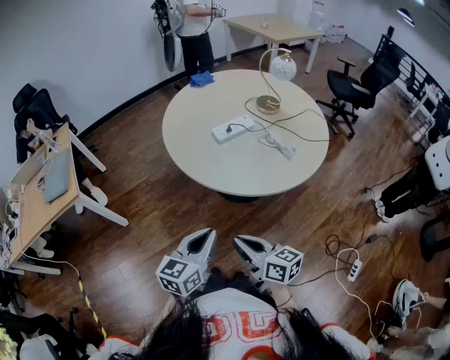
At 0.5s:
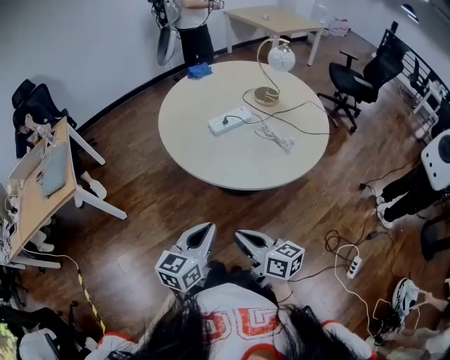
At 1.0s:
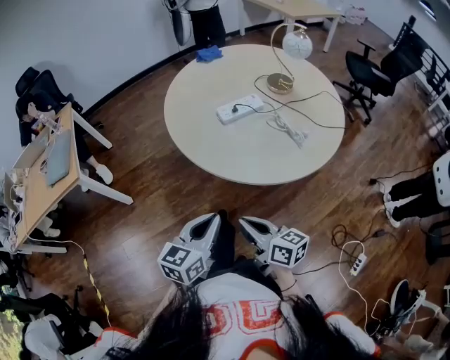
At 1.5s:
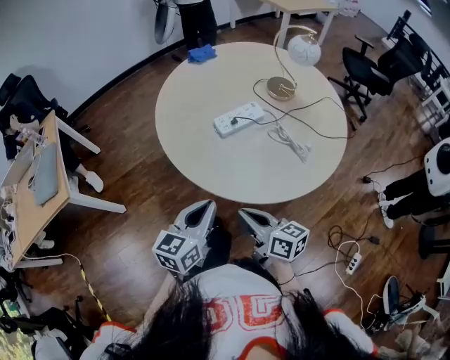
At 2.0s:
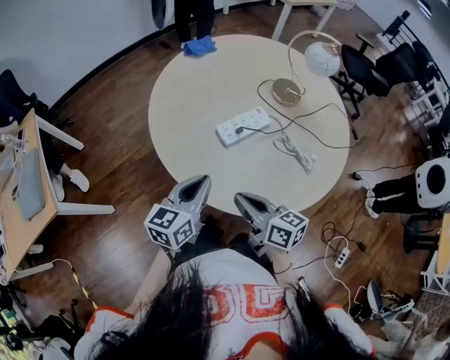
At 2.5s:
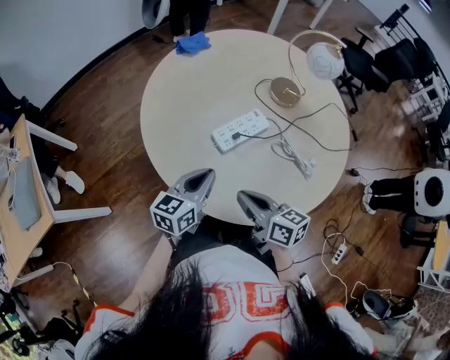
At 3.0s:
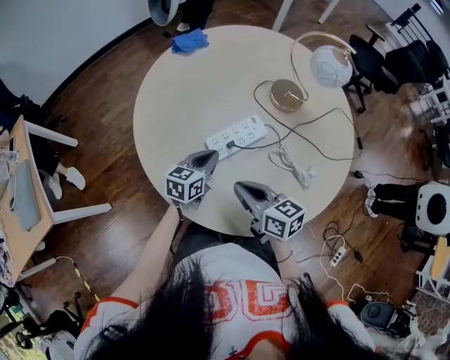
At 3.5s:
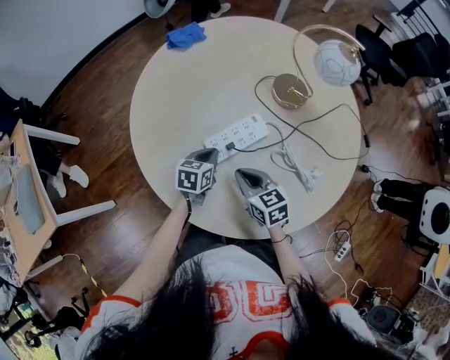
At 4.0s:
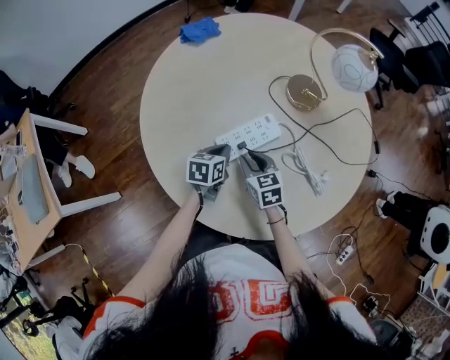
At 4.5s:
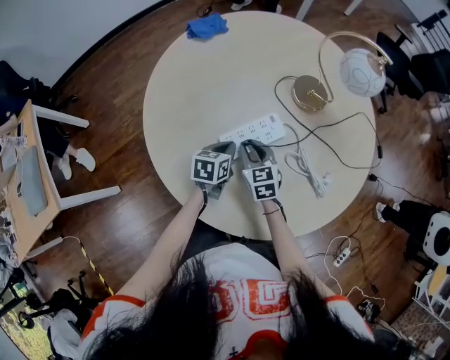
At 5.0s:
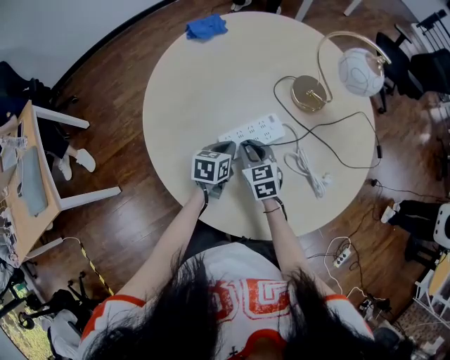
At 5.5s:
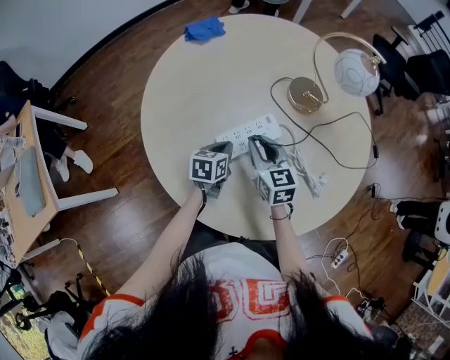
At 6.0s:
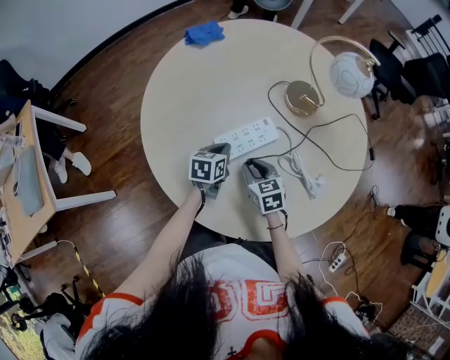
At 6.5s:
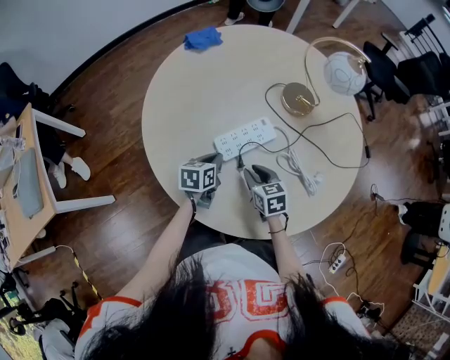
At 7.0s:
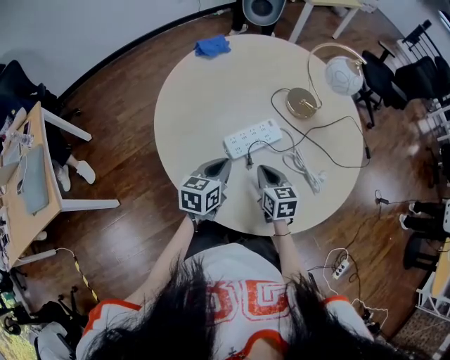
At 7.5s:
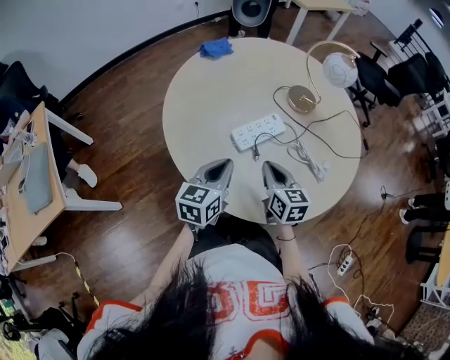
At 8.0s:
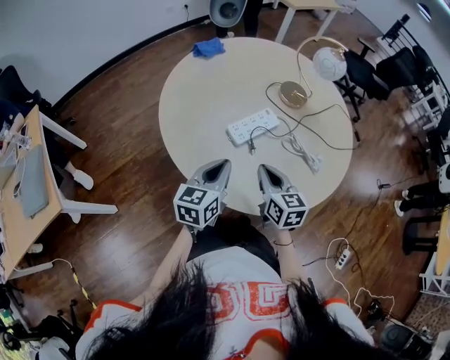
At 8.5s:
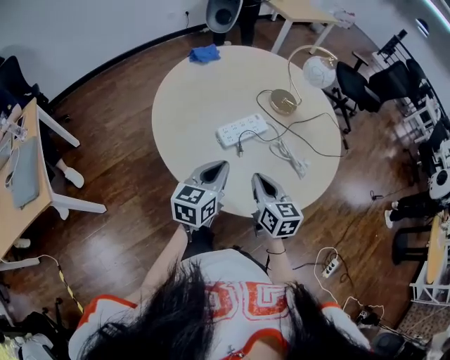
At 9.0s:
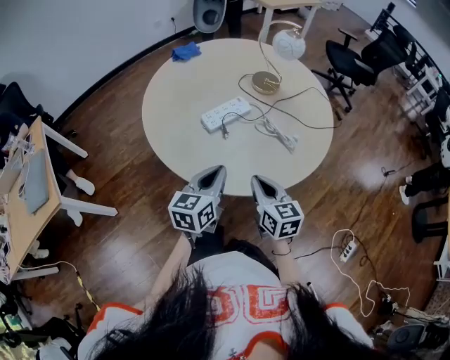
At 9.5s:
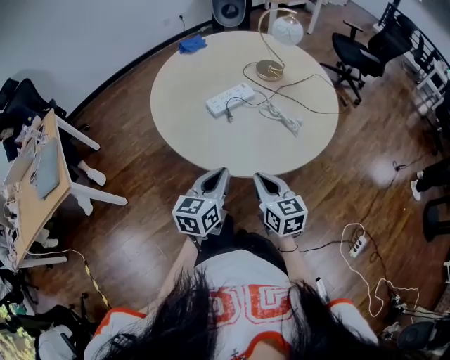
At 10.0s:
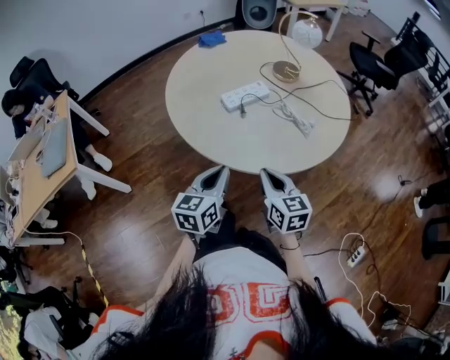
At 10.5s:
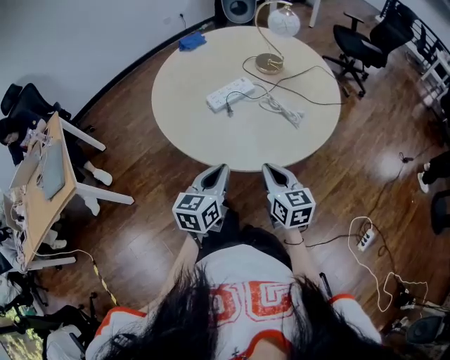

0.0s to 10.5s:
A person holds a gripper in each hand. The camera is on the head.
0.0s to 2.0s: Both grippers travel together forward, about 30 cm.
2.0s to 4.0s: The left gripper shifts approximately 30 cm downward, forward and to the right, and changes its angle by some 30 degrees, while the right gripper travels forward and downward by approximately 25 cm, rotates roughly 40 degrees, and opens.
4.0s to 6.5s: The right gripper travels upward and back again, some 10 cm each way.
6.5s to 8.5s: Both grippers travel together upward and backward, some 20 cm. The right gripper changes its angle by approximately 20 degrees, and closes. Meanwhile the left gripper turns by roughly 30 degrees.
8.5s to 10.5s: The right gripper is displaced backward and to the right by approximately 15 cm, while the left gripper shifts about 15 cm backward.

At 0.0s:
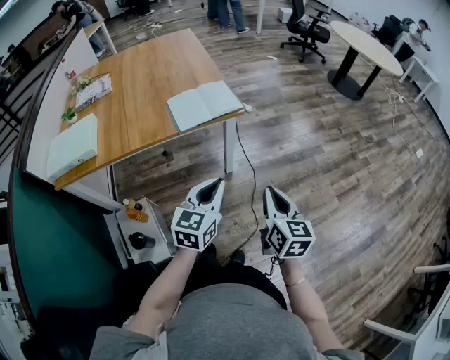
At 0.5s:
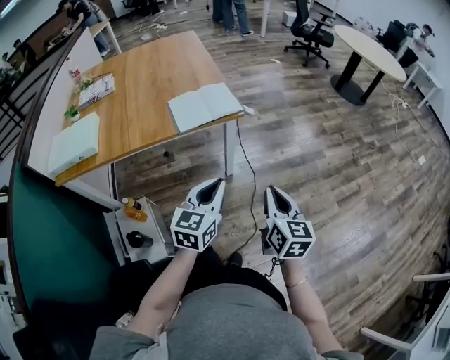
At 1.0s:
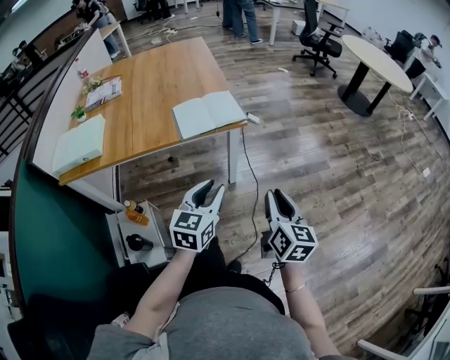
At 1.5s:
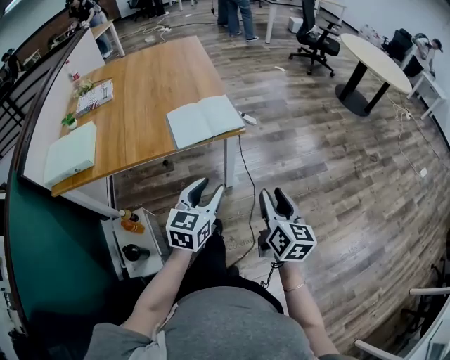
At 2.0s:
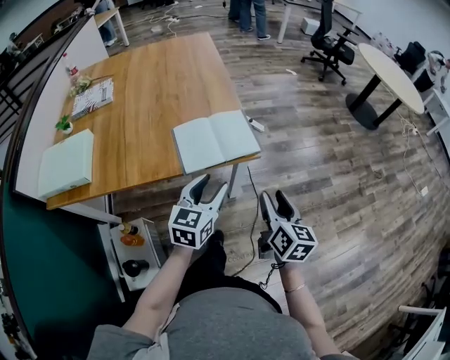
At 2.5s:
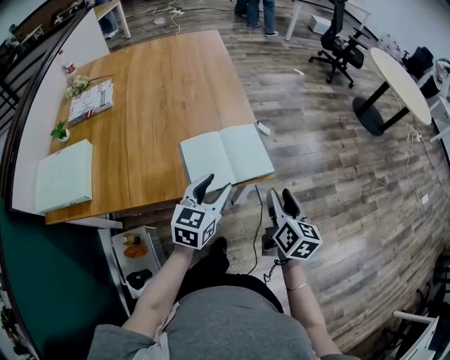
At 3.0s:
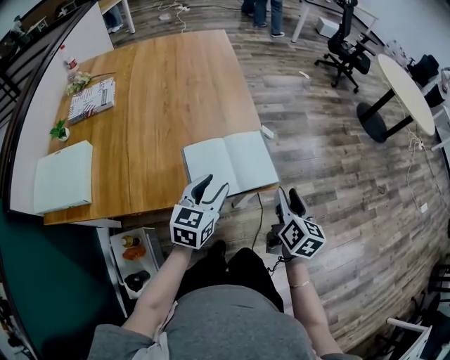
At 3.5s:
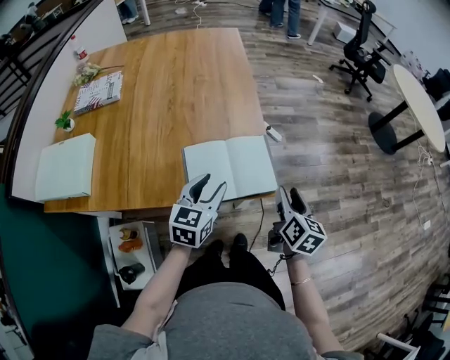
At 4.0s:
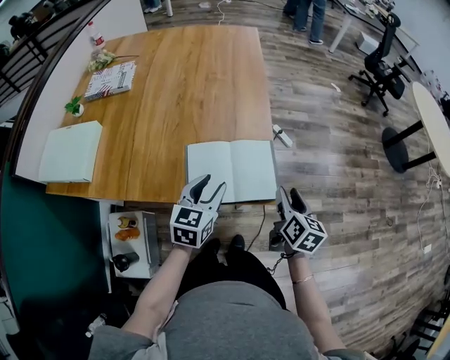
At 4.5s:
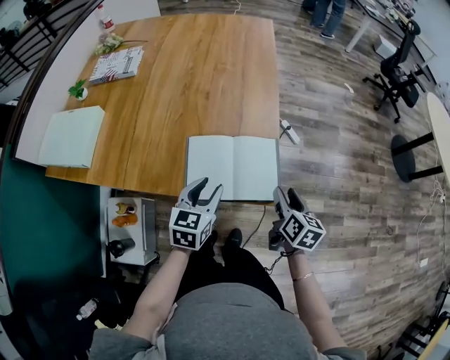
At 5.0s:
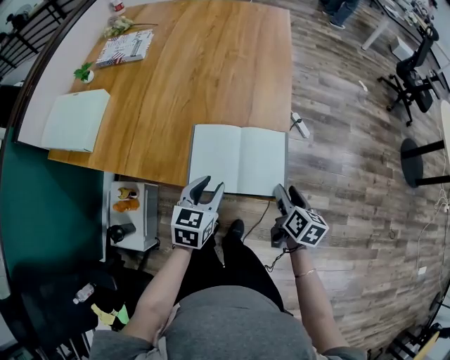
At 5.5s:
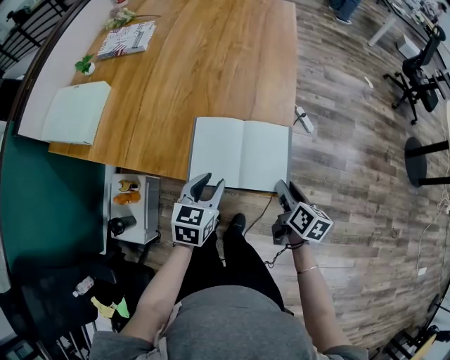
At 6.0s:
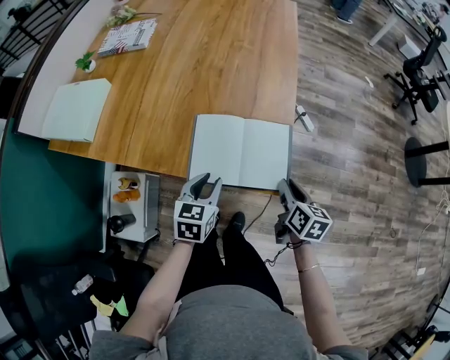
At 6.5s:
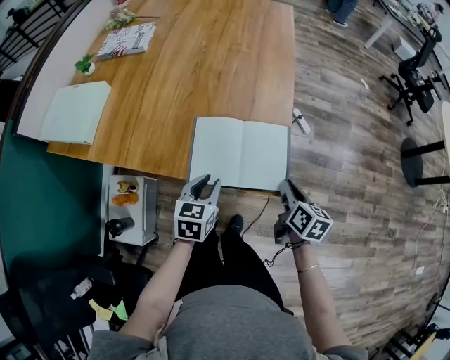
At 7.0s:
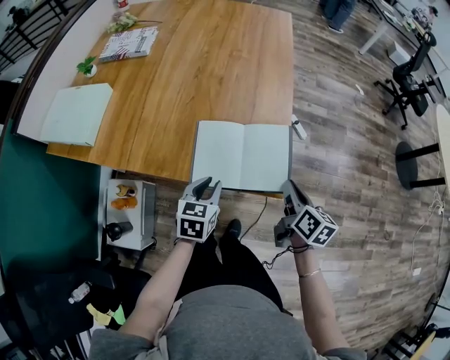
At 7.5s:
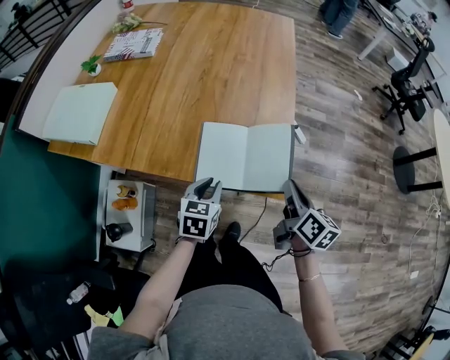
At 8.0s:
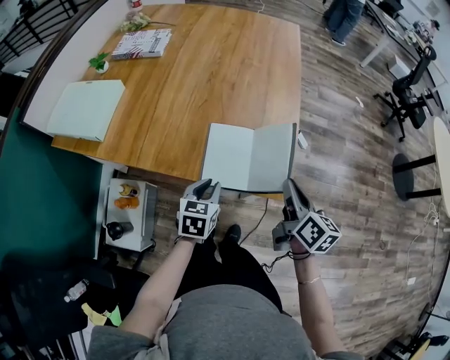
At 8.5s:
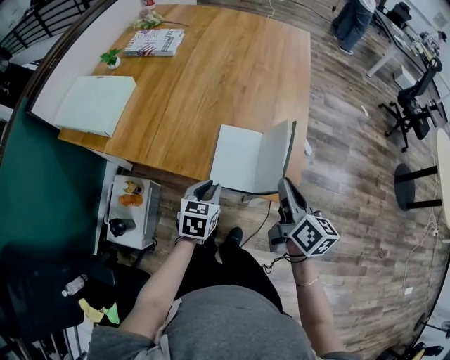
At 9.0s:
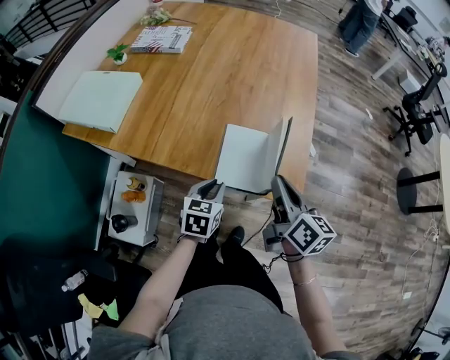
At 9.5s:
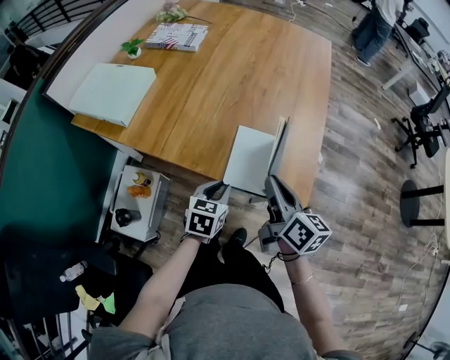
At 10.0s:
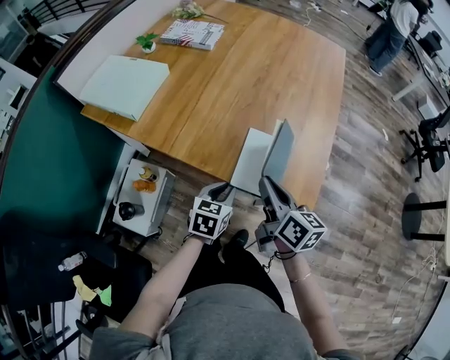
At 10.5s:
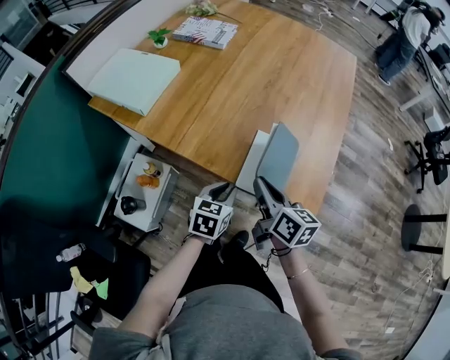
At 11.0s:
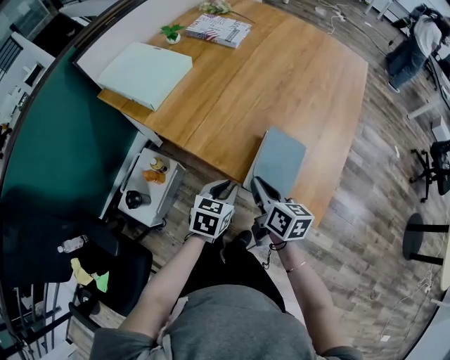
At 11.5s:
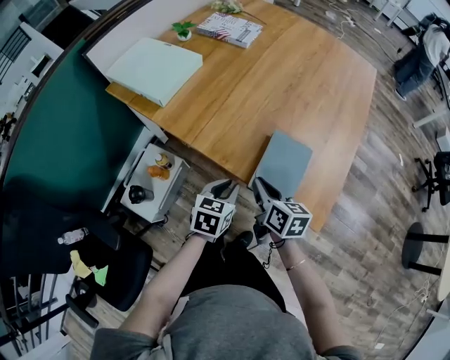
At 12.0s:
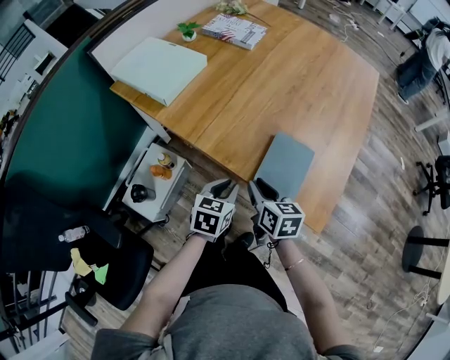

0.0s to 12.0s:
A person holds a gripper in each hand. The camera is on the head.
0.0s to 2.0s: Both grippers travel together forward, some 20 cm. The left gripper opens its fingers. Meanwhile the right gripper opens up.
2.0s to 4.0s: The left gripper heads forward and to the left, covering approximately 15 cm, while the right gripper travels forward by roughly 20 cm.
4.0s to 6.0s: Both grippers move downward, roughly 5 cm. The right gripper closes its fingers.
6.0s to 8.0s: The right gripper heads upward and to the left, covering some 15 cm.
8.0s to 10.0s: The right gripper is displaced to the left by some 15 cm, and turns by about 20 degrees.
10.0s to 12.0s: The left gripper heads to the left, covering roughly 5 cm; the right gripper goes about 10 cm downward and to the left, and turns by roughly 30 degrees.

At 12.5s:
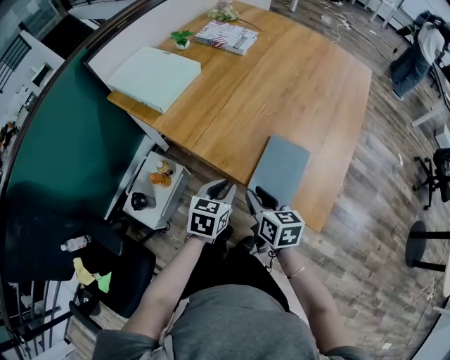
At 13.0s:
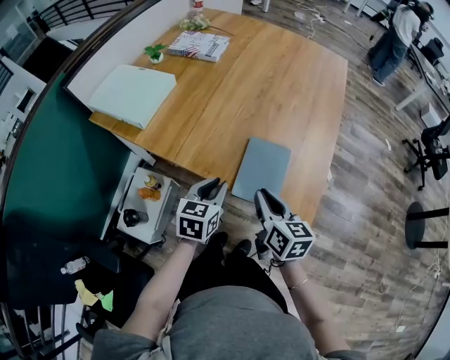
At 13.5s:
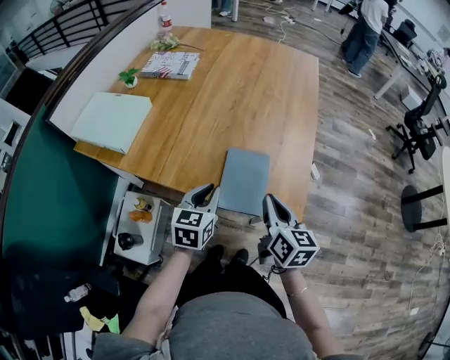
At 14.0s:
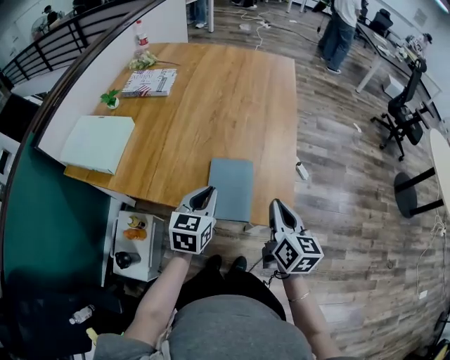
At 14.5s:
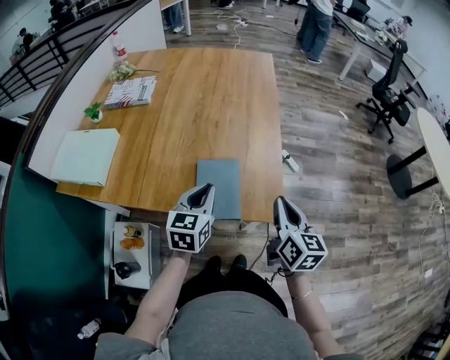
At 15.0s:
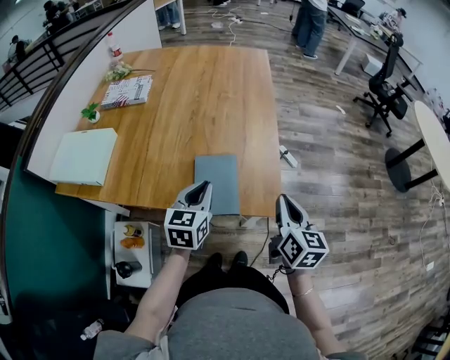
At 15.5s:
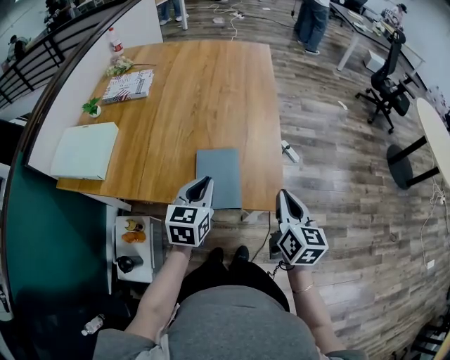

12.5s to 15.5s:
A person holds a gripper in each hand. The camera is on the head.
12.5s to 14.0s: The right gripper heads to the right and upward, covering approximately 20 cm, swivels some 40 degrees, and closes its fingers. Meanwhile the left gripper goes about 15 cm to the right, upward and forward, and changes its angle by roughly 20 degrees.
14.0s to 15.5s: The right gripper travels to the right by about 5 cm.

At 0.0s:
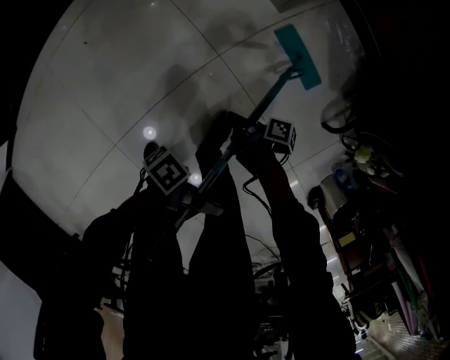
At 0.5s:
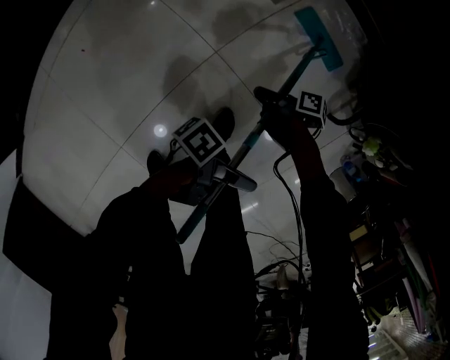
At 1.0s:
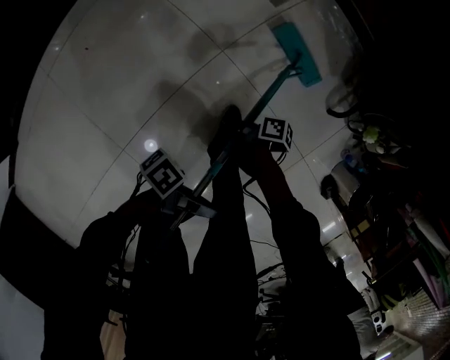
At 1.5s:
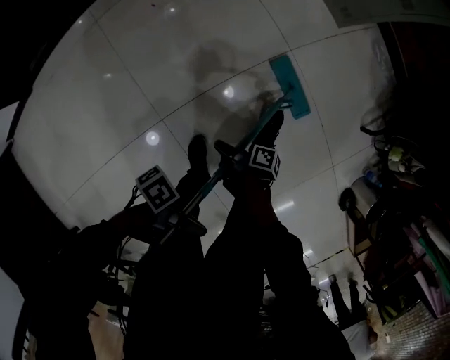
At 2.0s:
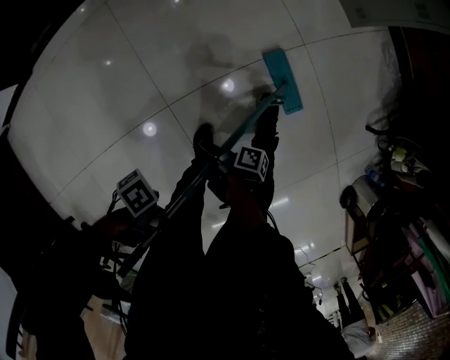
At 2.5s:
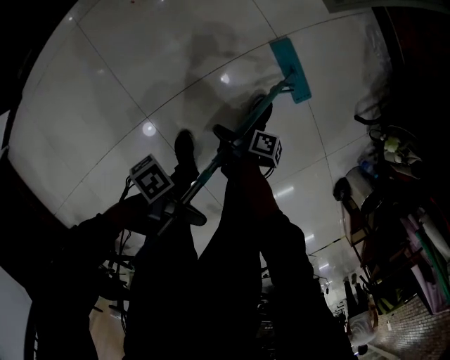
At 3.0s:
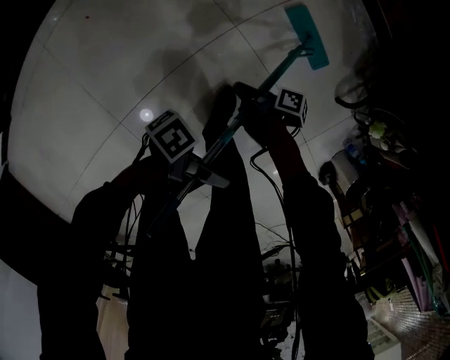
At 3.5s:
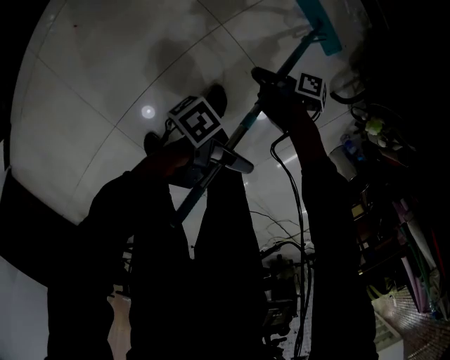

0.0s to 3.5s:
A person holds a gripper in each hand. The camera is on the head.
0.0s to 2.0s: The left gripper ends up about 50 cm from where it was; the right gripper moves roughly 50 cm.
2.0s to 3.5s: The two grippers travel together, approximately 40 cm.
